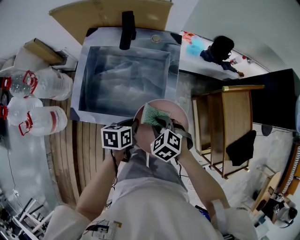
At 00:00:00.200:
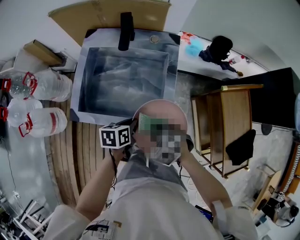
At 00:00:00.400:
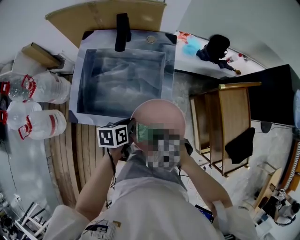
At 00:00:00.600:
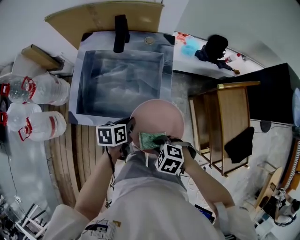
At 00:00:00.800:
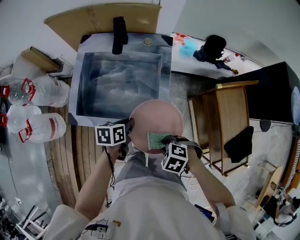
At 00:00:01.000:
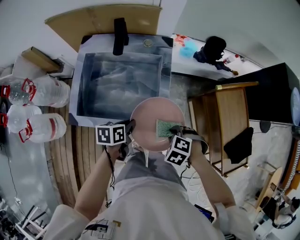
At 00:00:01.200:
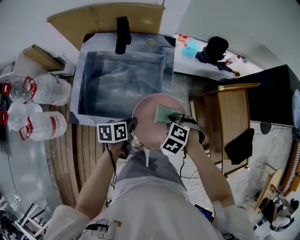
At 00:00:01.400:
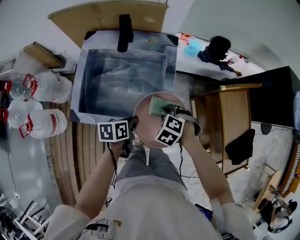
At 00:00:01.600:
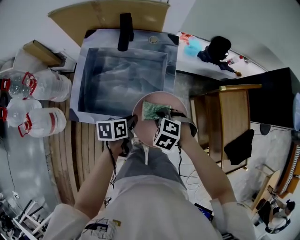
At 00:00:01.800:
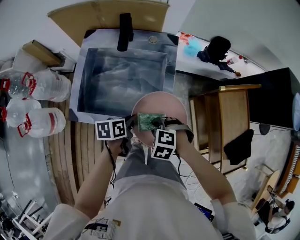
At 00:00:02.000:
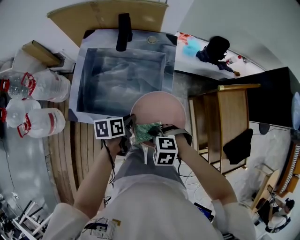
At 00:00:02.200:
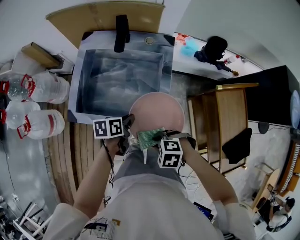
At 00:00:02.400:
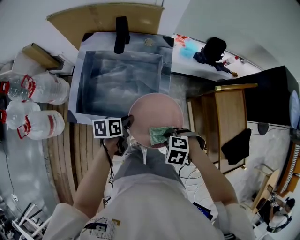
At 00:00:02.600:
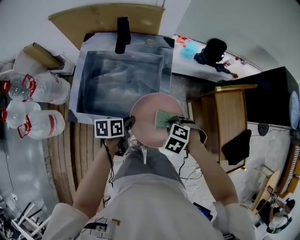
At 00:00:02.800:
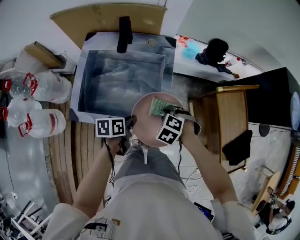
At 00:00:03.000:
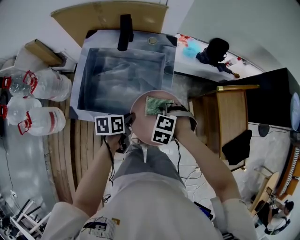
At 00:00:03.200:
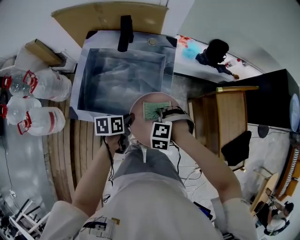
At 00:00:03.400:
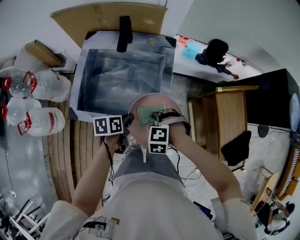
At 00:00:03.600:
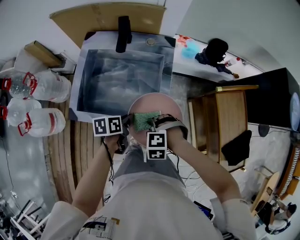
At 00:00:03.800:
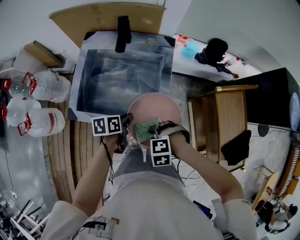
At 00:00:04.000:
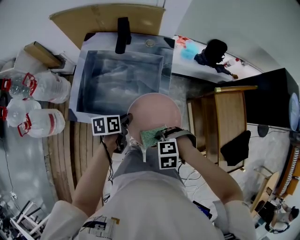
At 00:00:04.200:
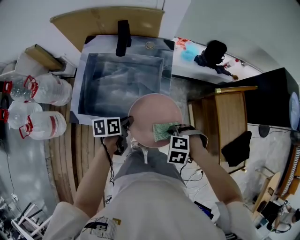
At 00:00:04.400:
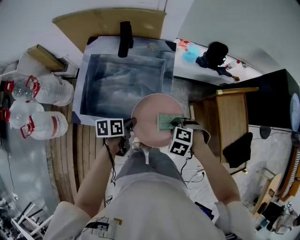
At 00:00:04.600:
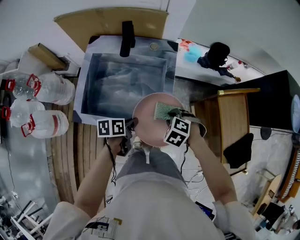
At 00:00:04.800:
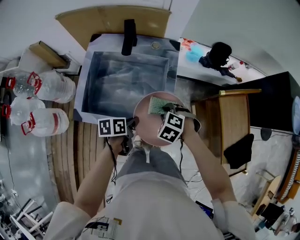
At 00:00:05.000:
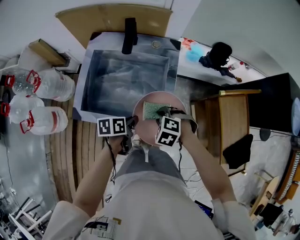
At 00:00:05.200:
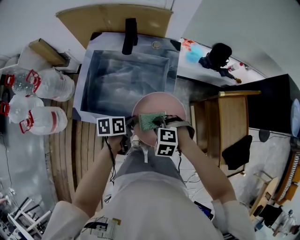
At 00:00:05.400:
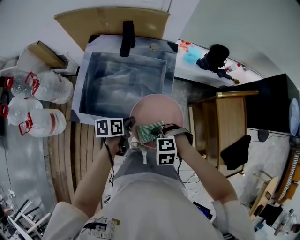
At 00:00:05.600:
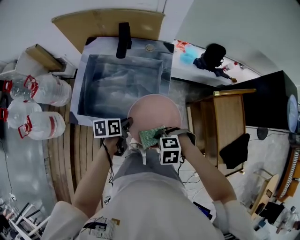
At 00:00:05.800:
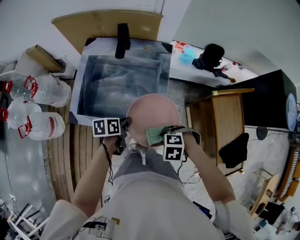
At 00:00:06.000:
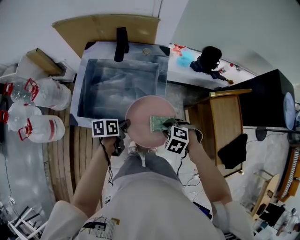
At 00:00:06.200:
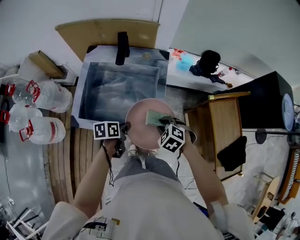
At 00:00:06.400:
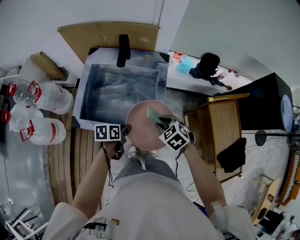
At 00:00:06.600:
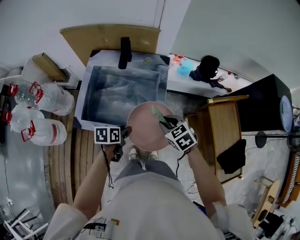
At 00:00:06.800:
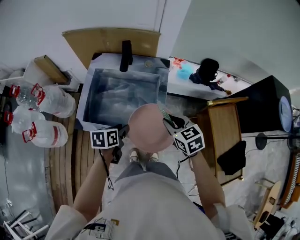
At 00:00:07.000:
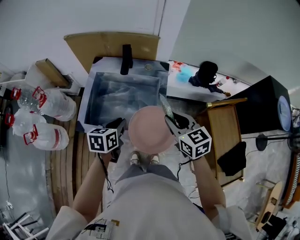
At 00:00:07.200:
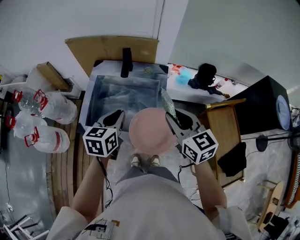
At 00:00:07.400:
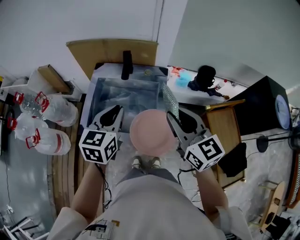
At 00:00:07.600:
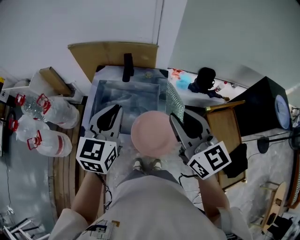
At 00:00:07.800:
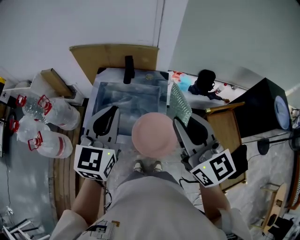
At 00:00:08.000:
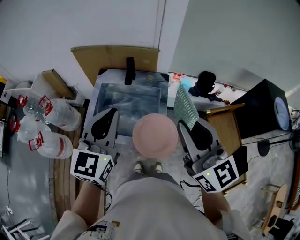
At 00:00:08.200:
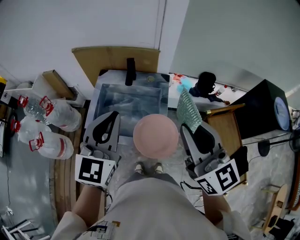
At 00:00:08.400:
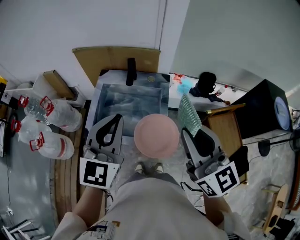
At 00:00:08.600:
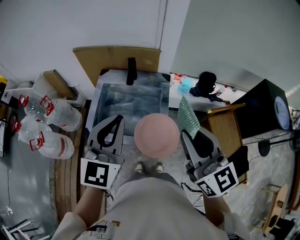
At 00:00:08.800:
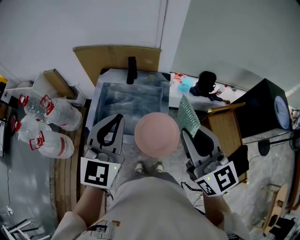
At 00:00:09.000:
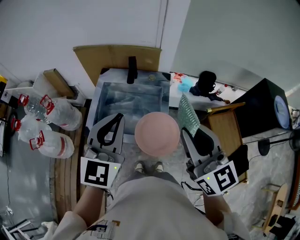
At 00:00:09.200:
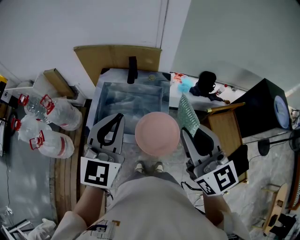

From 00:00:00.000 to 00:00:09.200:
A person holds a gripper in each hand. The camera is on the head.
From 00:00:06.200 to 00:00:07.600: Both grippers move upward, approximately 35 cm. The right gripper points its fingers roughly 60 degrees further upward; the left gripper tilts its fingers approximately 30 degrees upward, and opens and closes again.
From 00:00:07.600 to 00:00:09.200: The left gripper heads backward and upward, covering approximately 10 cm; the right gripper moves backward, some 5 cm.

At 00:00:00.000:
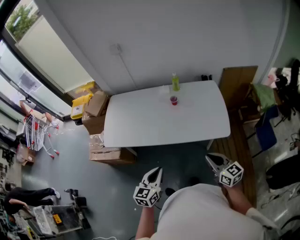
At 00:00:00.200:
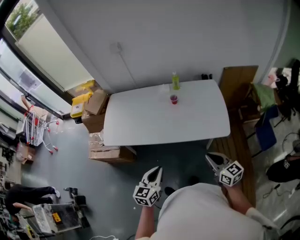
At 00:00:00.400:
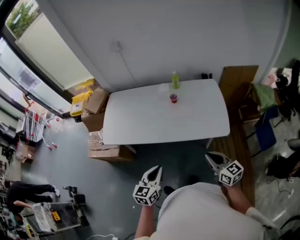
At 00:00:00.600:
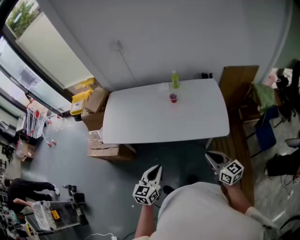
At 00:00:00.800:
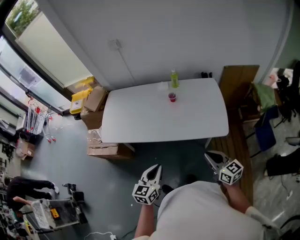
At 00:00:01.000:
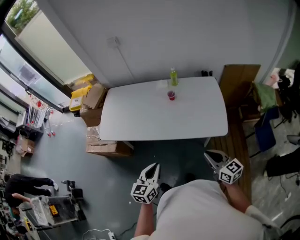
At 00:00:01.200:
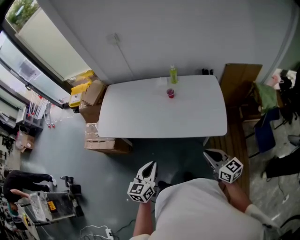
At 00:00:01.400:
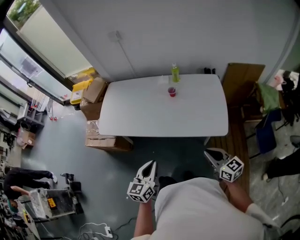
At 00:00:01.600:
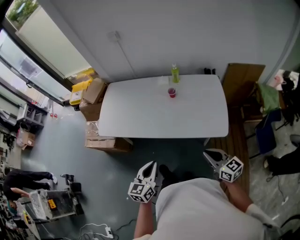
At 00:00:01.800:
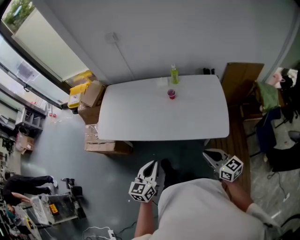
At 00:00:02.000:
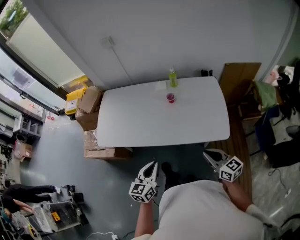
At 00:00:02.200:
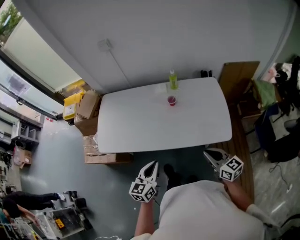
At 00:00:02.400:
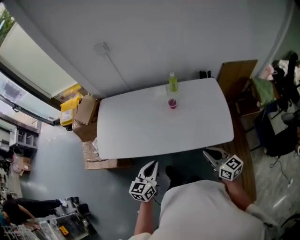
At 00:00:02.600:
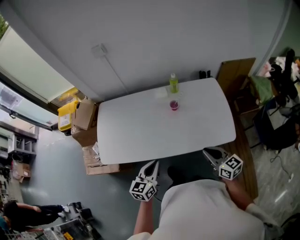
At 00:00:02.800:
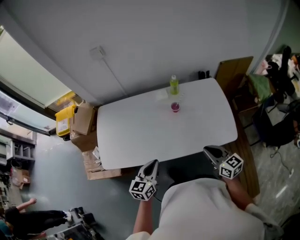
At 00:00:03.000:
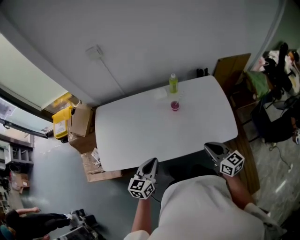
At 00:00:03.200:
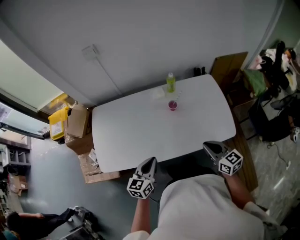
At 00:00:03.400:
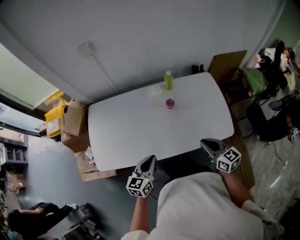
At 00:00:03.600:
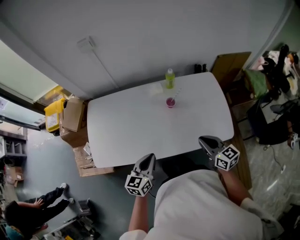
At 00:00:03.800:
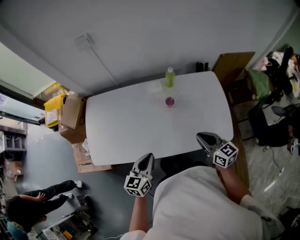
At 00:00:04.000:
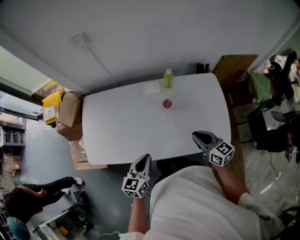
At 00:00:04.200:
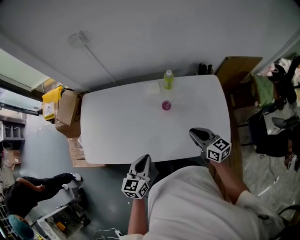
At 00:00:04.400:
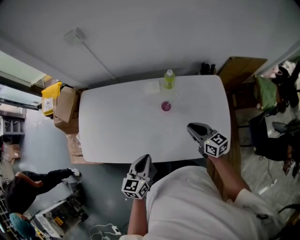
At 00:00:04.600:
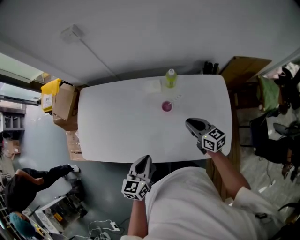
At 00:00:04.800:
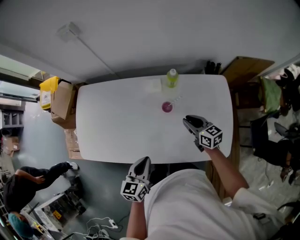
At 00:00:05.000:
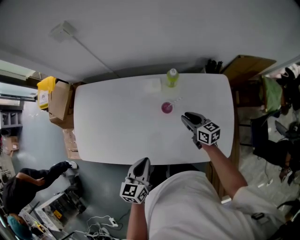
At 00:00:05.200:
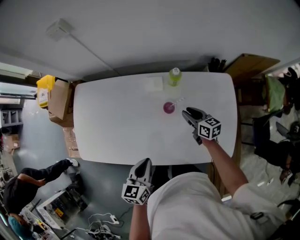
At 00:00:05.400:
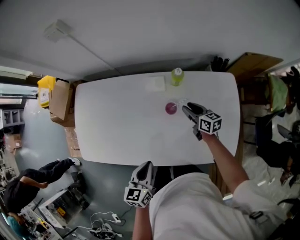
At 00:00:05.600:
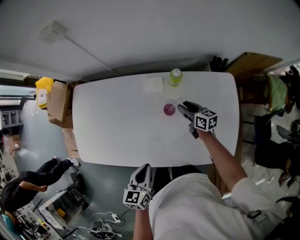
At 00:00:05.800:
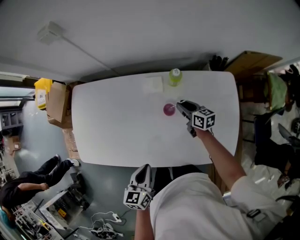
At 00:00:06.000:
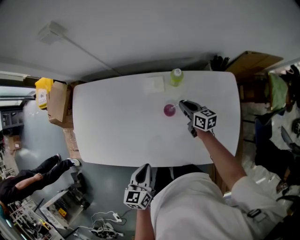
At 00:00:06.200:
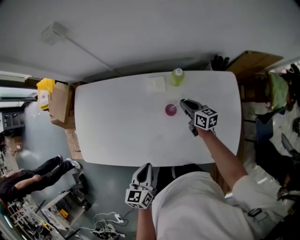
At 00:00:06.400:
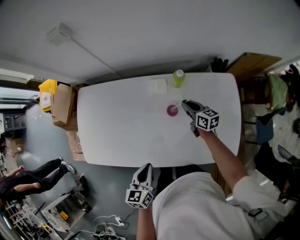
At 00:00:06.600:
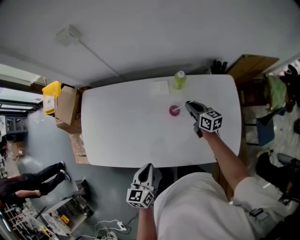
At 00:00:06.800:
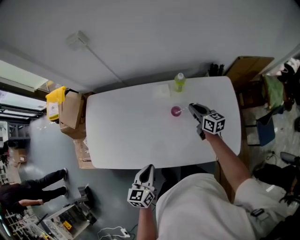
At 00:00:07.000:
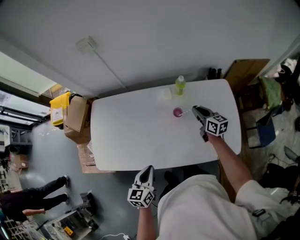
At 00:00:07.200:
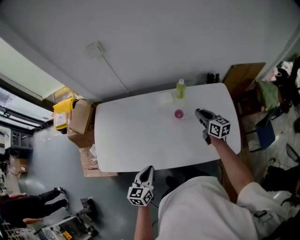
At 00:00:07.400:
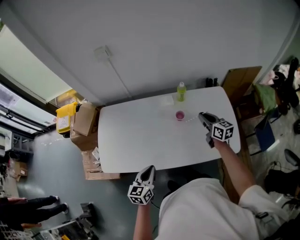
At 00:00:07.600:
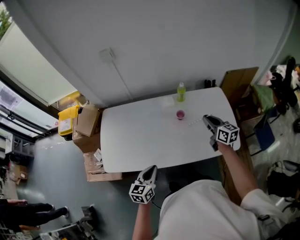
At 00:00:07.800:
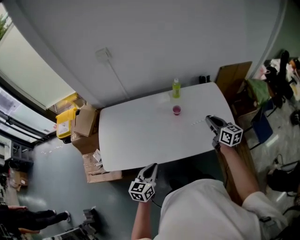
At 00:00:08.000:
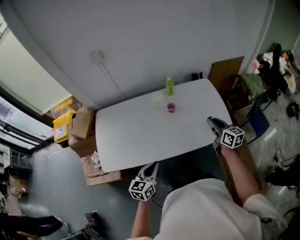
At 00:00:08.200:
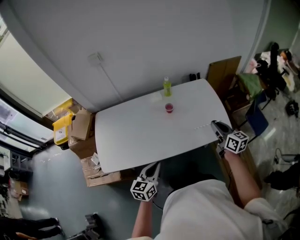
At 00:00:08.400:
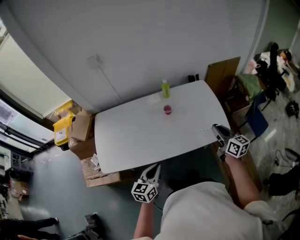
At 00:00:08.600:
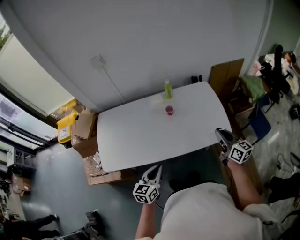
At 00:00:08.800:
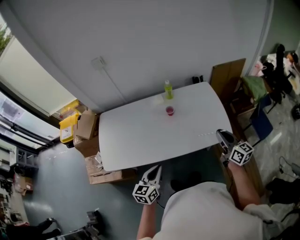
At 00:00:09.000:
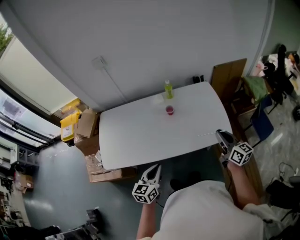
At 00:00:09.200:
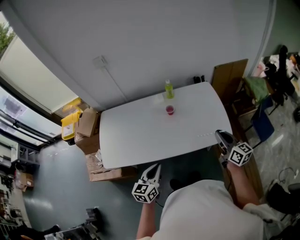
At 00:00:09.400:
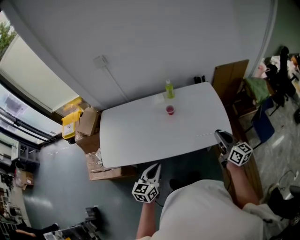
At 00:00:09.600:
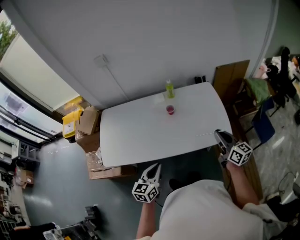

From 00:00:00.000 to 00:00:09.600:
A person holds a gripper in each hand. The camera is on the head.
From 00:00:00.000 to 00:00:01.600: The right gripper moves some 5 cm.
From 00:00:01.600 to 00:00:03.200: Both grippers move forward and to the left, approximately 25 cm.
From 00:00:03.200 to 00:00:04.800: The left gripper moves to the right and forward, some 15 cm. The right gripper heads forward and downward, covering some 30 cm.
From 00:00:04.800 to 00:00:06.400: The right gripper moves forward and downward, approximately 15 cm.
From 00:00:06.400 to 00:00:08.000: The left gripper goes roughly 15 cm backward and to the left, and swivels approximately 30 degrees. The right gripper goes some 35 cm backward and upward, and swivels about 30 degrees.
From 00:00:08.000 to 00:00:09.600: The left gripper goes roughly 5 cm to the right; the right gripper heads backward and to the right, covering some 10 cm.

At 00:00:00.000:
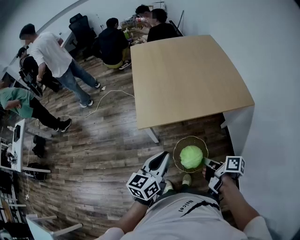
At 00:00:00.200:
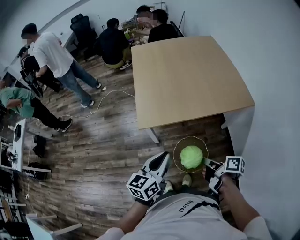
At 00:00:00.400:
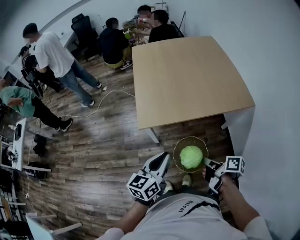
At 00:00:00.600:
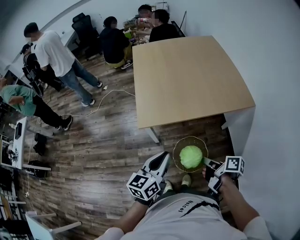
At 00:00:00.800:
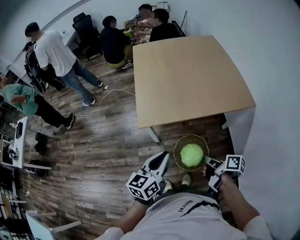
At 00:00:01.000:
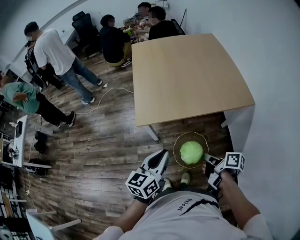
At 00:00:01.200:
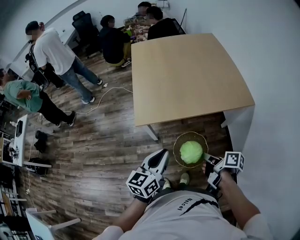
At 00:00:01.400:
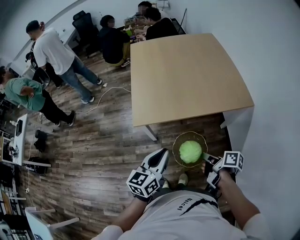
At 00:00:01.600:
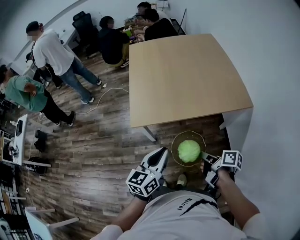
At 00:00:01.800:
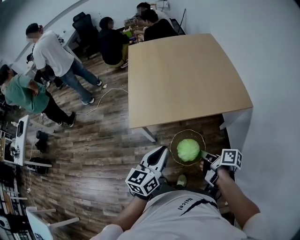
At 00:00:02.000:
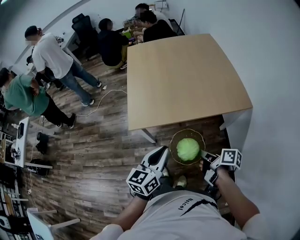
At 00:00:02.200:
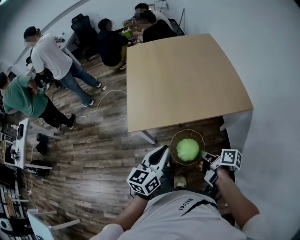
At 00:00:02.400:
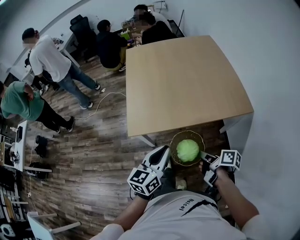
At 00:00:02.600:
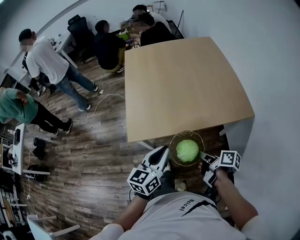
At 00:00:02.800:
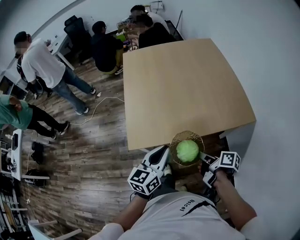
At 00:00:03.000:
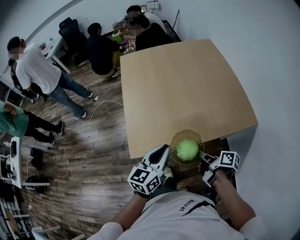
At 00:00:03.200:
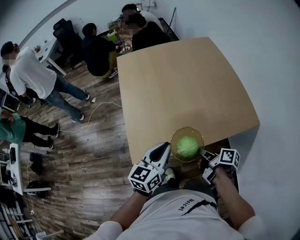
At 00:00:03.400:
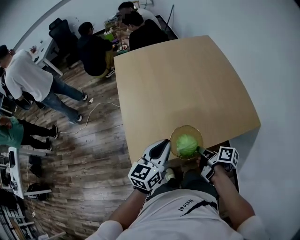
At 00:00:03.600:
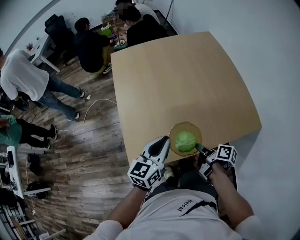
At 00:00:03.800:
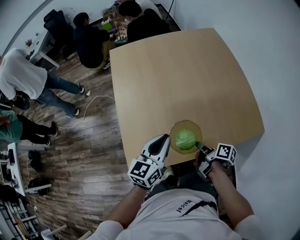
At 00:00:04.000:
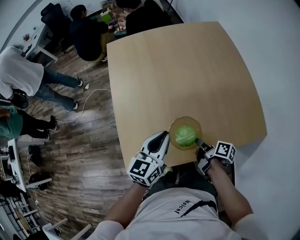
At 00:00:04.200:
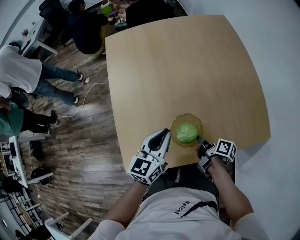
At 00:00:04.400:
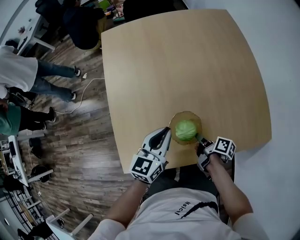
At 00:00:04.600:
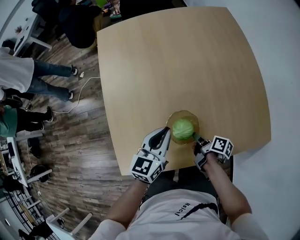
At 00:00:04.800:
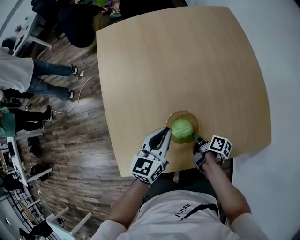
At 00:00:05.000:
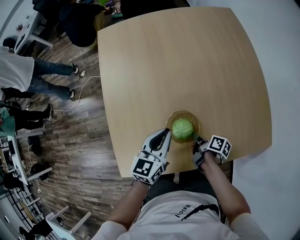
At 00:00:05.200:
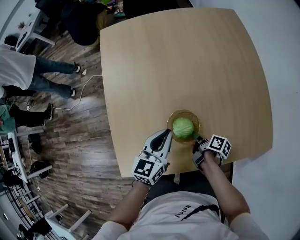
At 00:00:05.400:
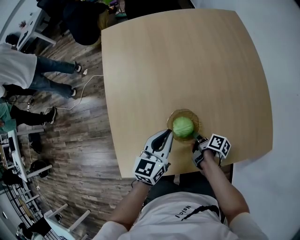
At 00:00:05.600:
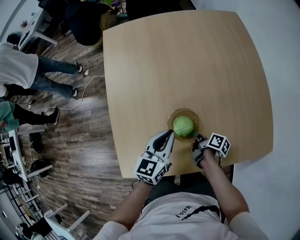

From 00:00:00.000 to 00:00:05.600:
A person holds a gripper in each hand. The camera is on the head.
From 00:00:00.000 to 00:00:01.400: The left gripper moves about 5 cm.
From 00:00:01.400 to 00:00:02.800: The left gripper changes place by about 15 cm.
From 00:00:02.800 to 00:00:04.200: The left gripper ends up roughly 30 cm from where it was.
From 00:00:04.200 to 00:00:05.600: The left gripper shifts some 5 cm downward.
